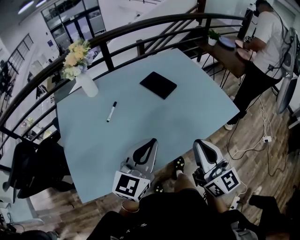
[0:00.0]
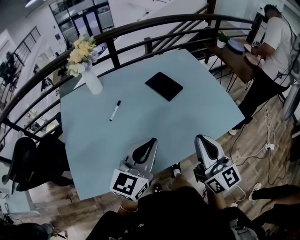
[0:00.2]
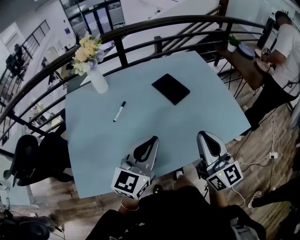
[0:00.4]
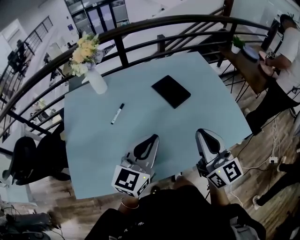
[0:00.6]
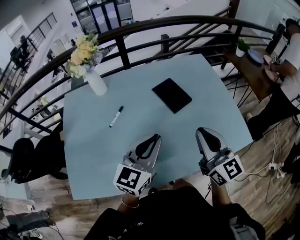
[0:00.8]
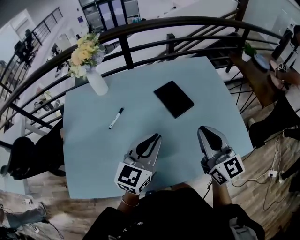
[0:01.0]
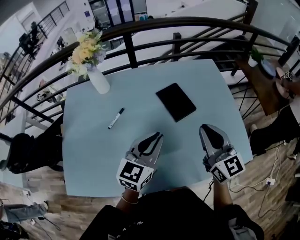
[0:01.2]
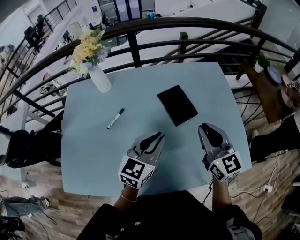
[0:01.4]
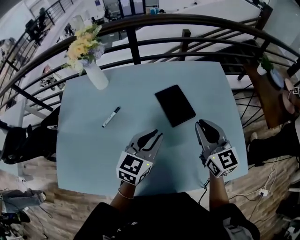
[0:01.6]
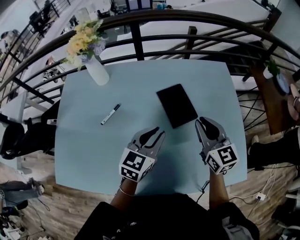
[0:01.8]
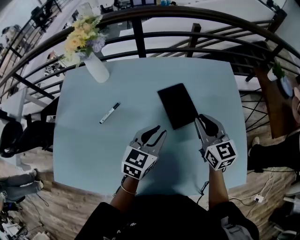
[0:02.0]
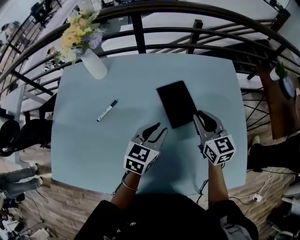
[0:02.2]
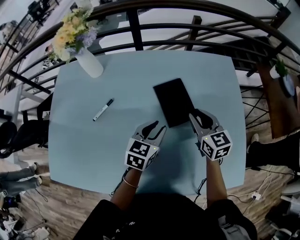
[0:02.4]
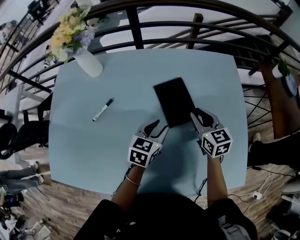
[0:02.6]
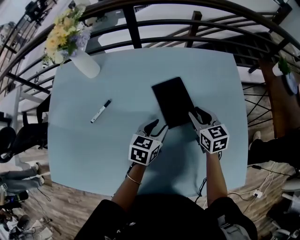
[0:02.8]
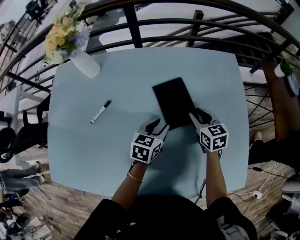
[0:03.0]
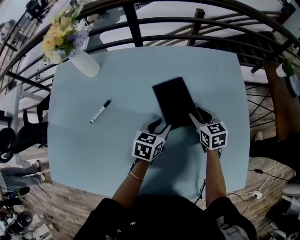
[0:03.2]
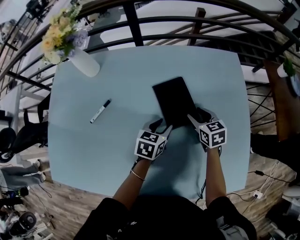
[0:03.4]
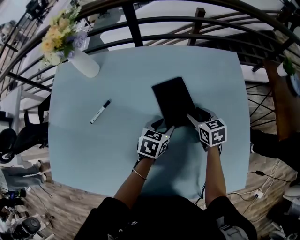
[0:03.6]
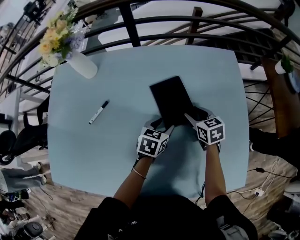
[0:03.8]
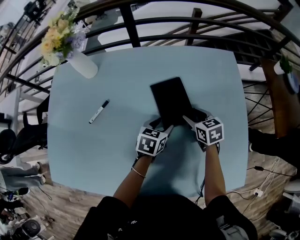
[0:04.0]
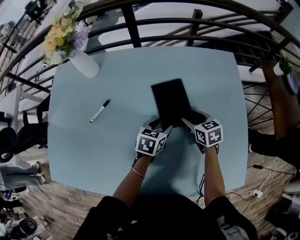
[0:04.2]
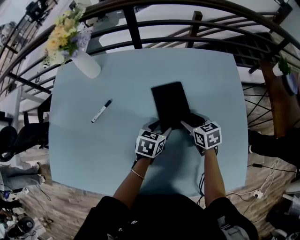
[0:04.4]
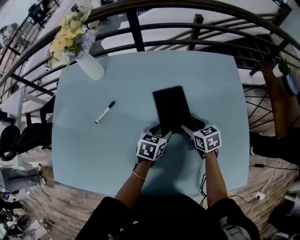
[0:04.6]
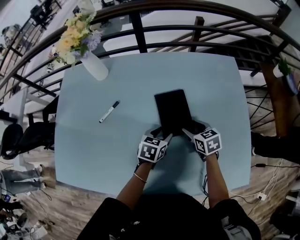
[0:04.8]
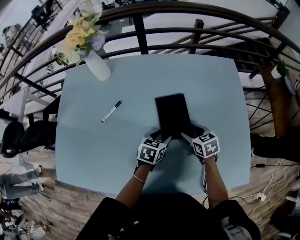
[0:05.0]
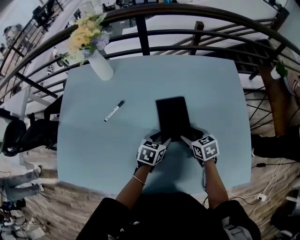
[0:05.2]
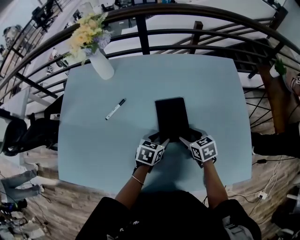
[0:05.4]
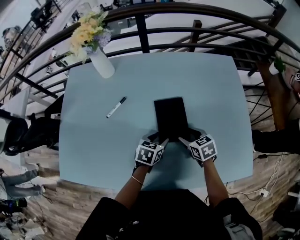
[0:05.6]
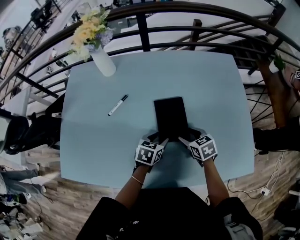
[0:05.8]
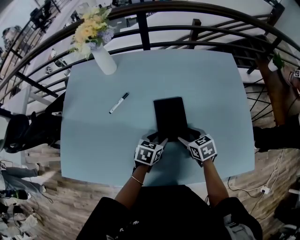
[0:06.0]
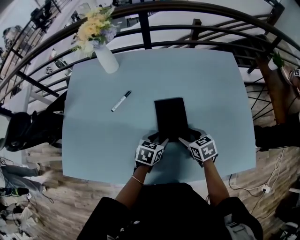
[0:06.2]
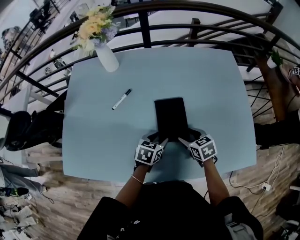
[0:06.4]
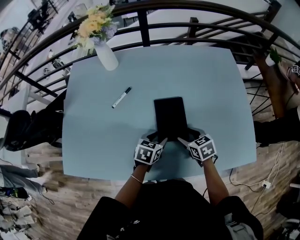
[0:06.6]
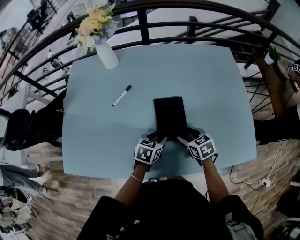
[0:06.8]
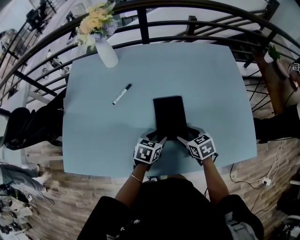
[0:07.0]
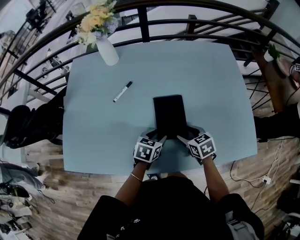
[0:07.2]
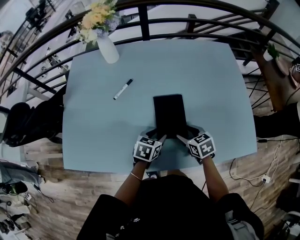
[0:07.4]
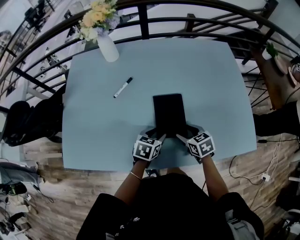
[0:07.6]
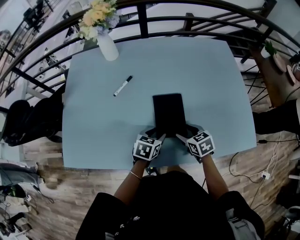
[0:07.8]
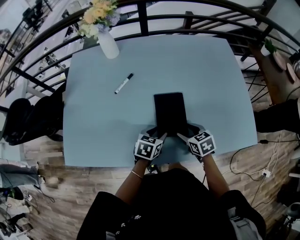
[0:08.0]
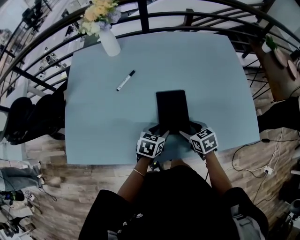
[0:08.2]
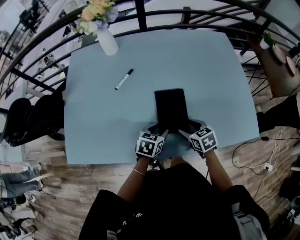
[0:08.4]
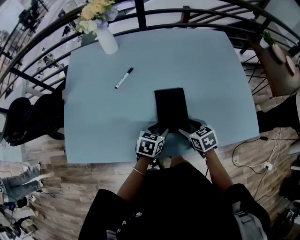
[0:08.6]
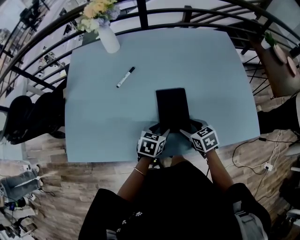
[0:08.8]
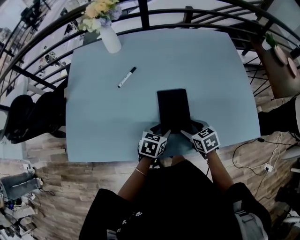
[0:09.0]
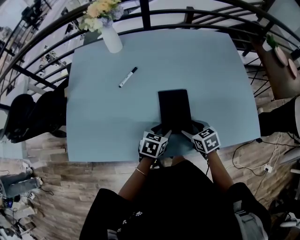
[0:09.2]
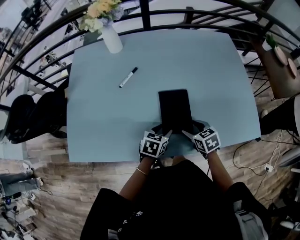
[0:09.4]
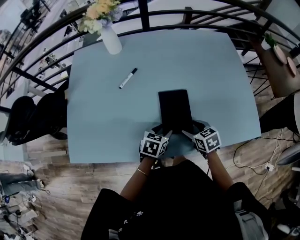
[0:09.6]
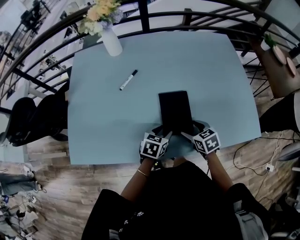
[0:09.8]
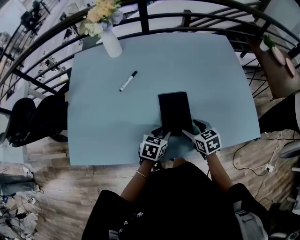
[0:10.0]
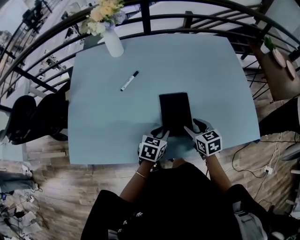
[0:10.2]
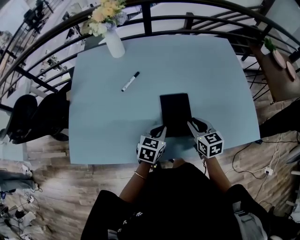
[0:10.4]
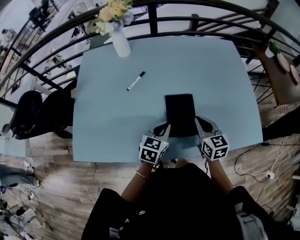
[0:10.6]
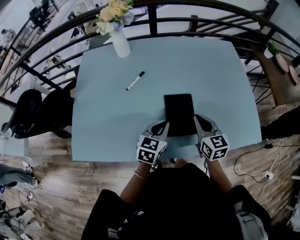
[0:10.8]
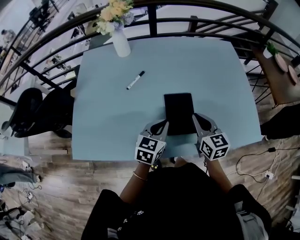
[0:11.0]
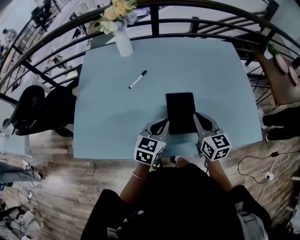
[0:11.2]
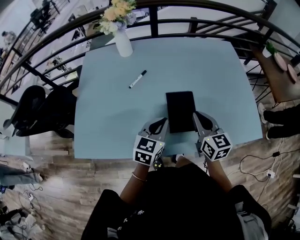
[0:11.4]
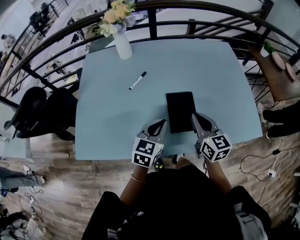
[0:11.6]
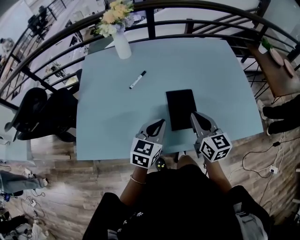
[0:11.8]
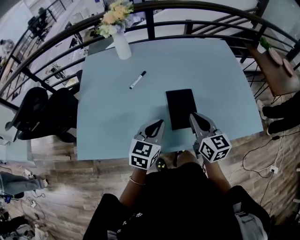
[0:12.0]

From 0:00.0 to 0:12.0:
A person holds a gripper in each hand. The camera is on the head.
From 0:00.0 to 0:01.6: The grippers both shift forward by about 30 cm. The left gripper swivels some 20 degrees. Meanwhile the right gripper changes its angle by about 30 degrees.
From 0:01.6 to 0:03.0: The two grippers go roughly 20 cm downward and forward. The right gripper swivels some 30 degrees. The left gripper changes its angle by approximately 20 degrees.
From 0:03.0 to 0:04.4: The right gripper changes place by about 5 cm.
From 0:04.4 to 0:06.0: The two grippers go roughly 15 cm backward and to the left.
From 0:06.0 to 0:07.6: The grippers both shift backward by about 10 cm.
From 0:07.6 to 0:09.0: The grippers move only a little.
From 0:09.0 to 0:10.4: The left gripper closes up. Meanwhile the right gripper heads upward, covering some 5 cm, rotates about 20 degrees, and closes its fingers.
From 0:10.4 to 0:12.0: The left gripper shifts approximately 10 cm upward. The right gripper shifts approximately 10 cm upward and backward, changes its angle by approximately 20 degrees, and closes up.

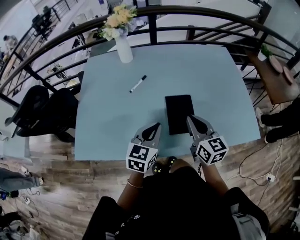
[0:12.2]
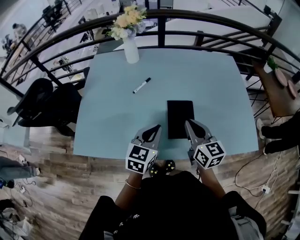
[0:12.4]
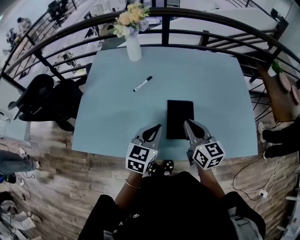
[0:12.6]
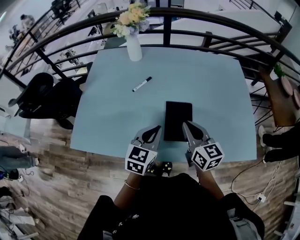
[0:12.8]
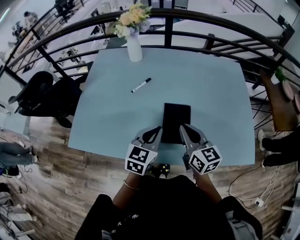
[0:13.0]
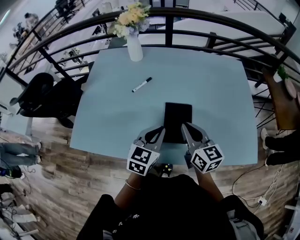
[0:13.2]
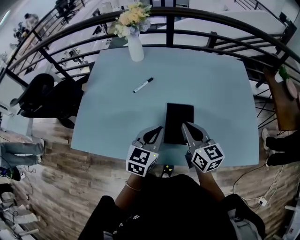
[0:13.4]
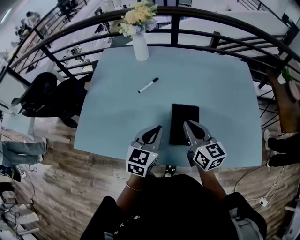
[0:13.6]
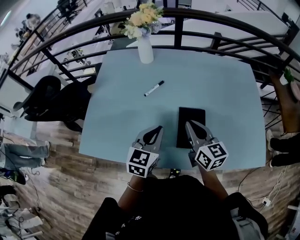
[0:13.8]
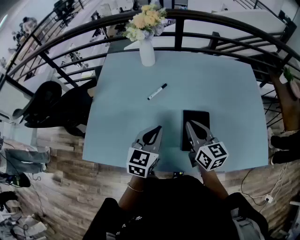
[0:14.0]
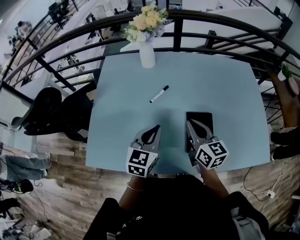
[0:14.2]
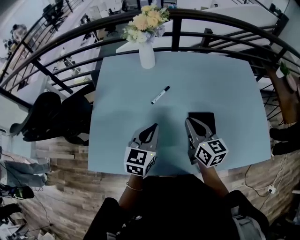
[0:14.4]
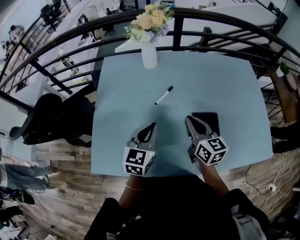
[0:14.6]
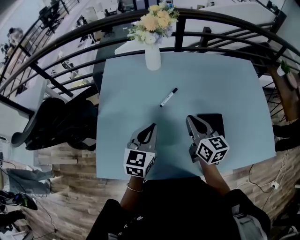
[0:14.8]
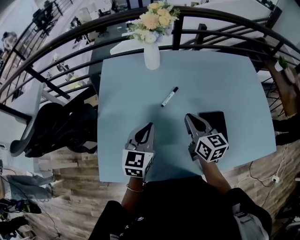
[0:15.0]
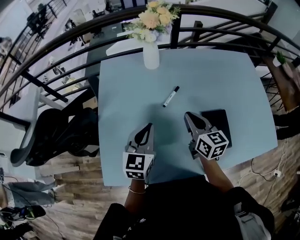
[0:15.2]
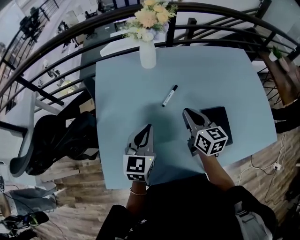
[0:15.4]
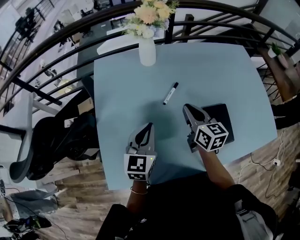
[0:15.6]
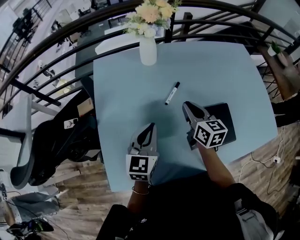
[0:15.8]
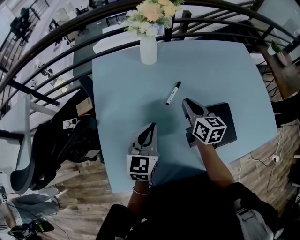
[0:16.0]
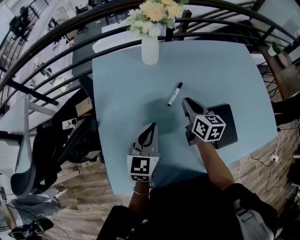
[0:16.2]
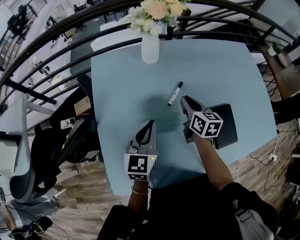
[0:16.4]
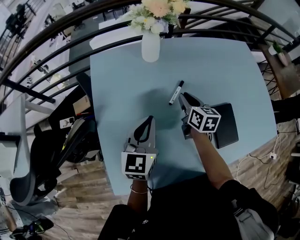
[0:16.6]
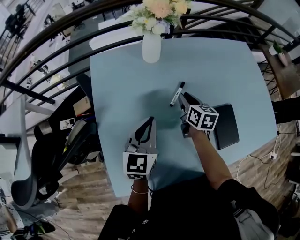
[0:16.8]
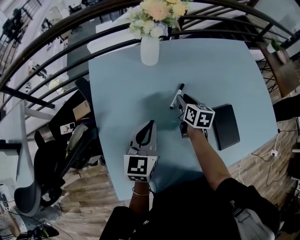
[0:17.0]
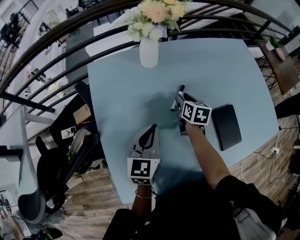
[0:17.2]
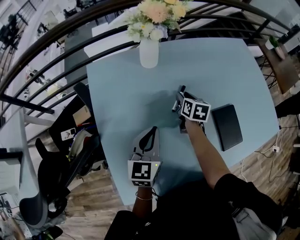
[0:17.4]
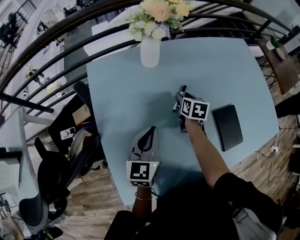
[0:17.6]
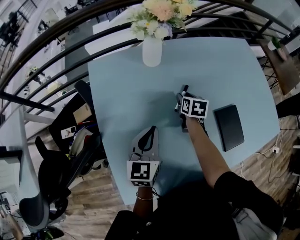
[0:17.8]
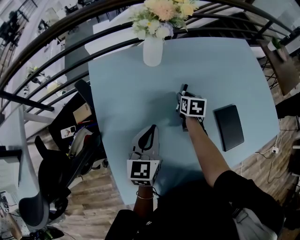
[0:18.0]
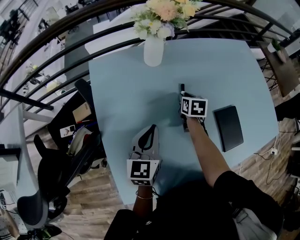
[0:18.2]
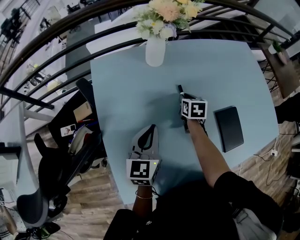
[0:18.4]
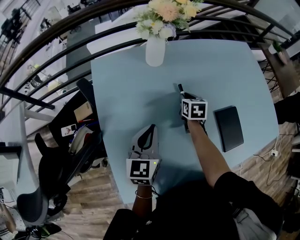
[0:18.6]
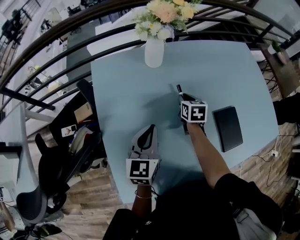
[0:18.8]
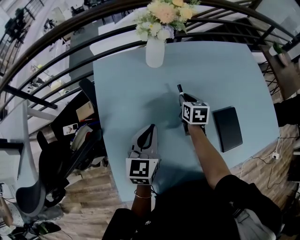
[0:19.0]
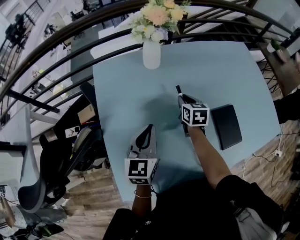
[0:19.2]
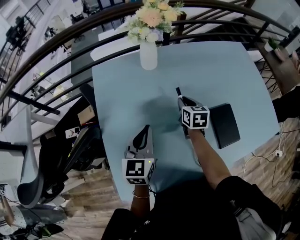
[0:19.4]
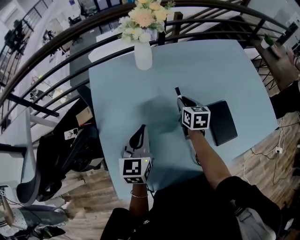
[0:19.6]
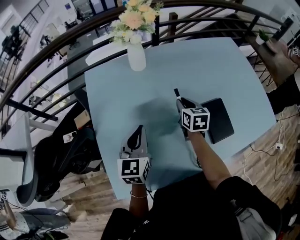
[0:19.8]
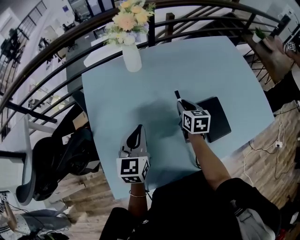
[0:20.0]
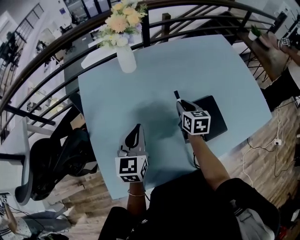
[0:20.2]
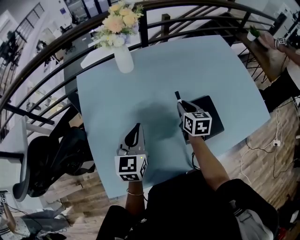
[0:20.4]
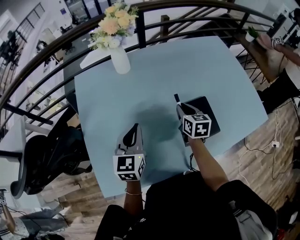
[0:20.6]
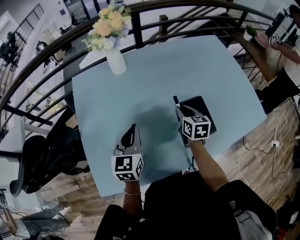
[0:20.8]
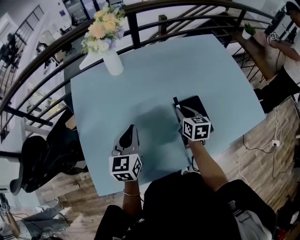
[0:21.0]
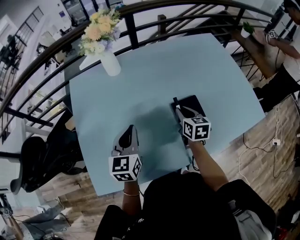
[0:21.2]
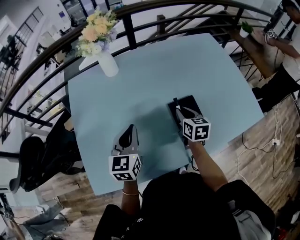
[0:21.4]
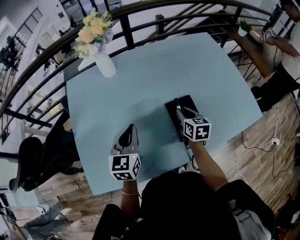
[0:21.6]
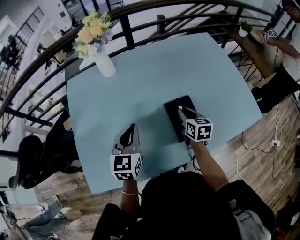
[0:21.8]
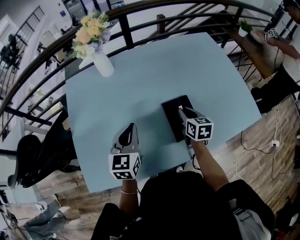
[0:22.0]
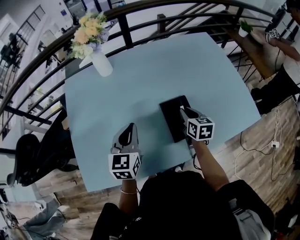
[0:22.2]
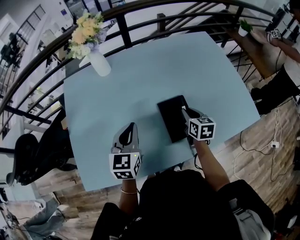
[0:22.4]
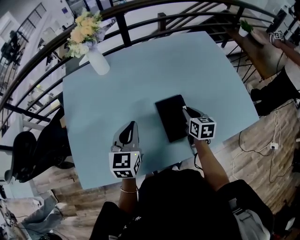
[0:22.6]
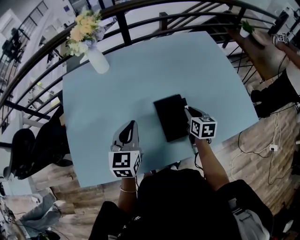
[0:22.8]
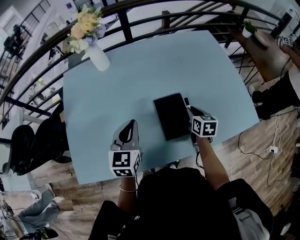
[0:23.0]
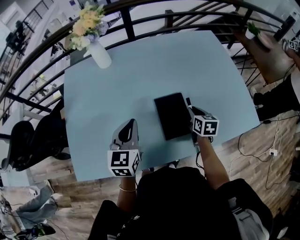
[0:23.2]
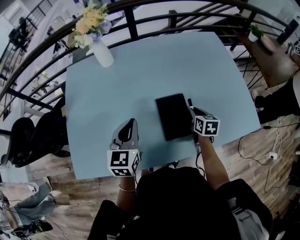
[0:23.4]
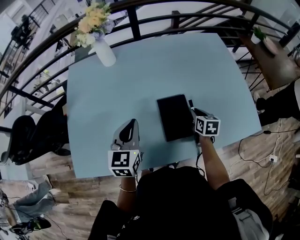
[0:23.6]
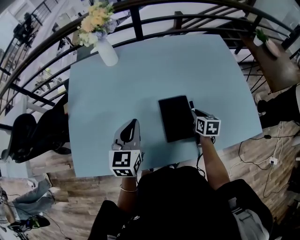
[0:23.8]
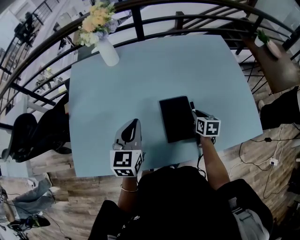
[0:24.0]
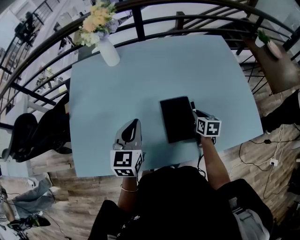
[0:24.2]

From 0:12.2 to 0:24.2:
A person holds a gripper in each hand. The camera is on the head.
From 0:12.2 to 0:13.8: The left gripper moves some 5 cm to the right and comes back, while the right gripper shifts roughly 5 cm forward.
From 0:13.8 to 0:15.2: The grippers both shift to the left and forward by about 20 cm.
From 0:15.2 to 0:16.6: The right gripper goes some 15 cm forward and downward. Meanwhile the left gripper moves forward, approximately 5 cm.
From 0:16.6 to 0:18.2: The right gripper is displaced downward and forward by roughly 10 cm, and swivels some 20 degrees.
From 0:18.2 to 0:19.8: The right gripper heads backward, upward and to the right, covering about 10 cm. Meanwhile the left gripper shifts by approximately 5 cm.
From 0:19.8 to 0:21.2: Both grippers move to the right, about 15 cm.
From 0:21.2 to 0:22.6: The two grippers go about 10 cm to the right.
From 0:22.6 to 0:24.2: The right gripper is displaced downward by some 5 cm.
